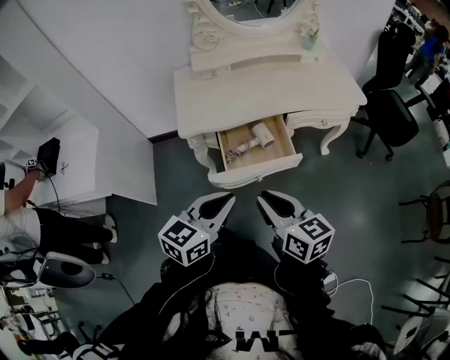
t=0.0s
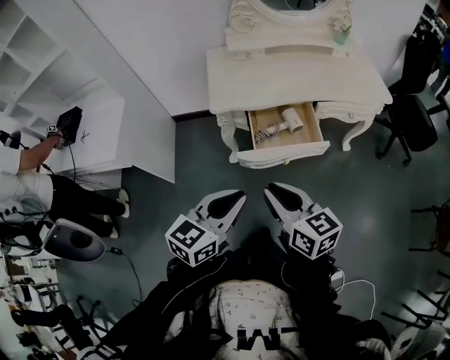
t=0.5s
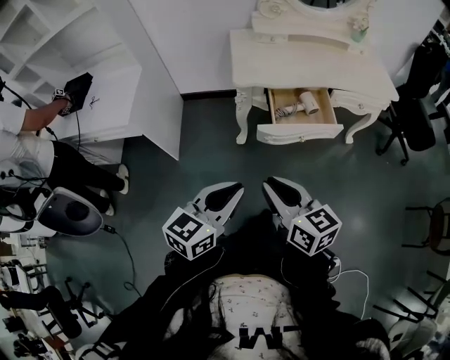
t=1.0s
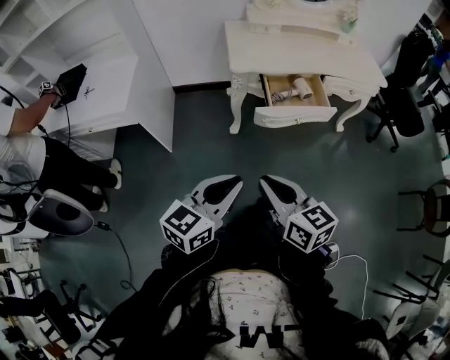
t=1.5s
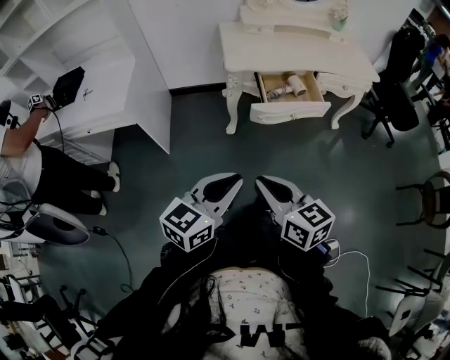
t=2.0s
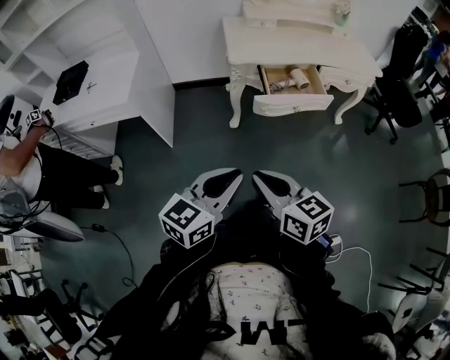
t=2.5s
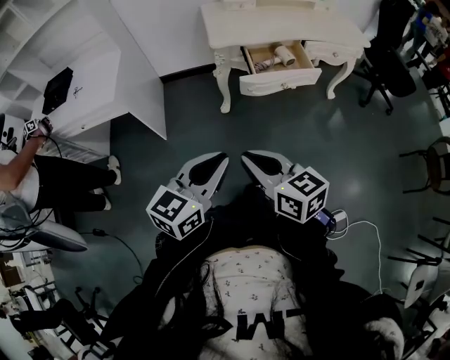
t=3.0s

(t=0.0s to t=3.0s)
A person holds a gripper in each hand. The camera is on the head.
t=0.0s - t=1.5s: The grippers both shift backward and to the left by approximately 25 cm.
t=1.5s - t=3.0s: The right gripper changes place by about 5 cm.

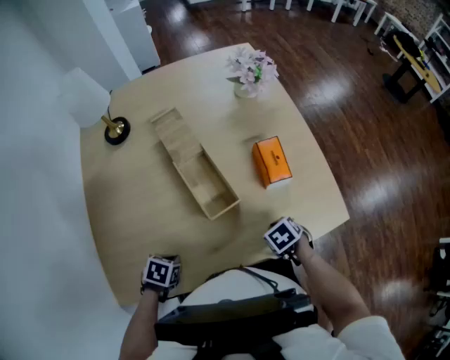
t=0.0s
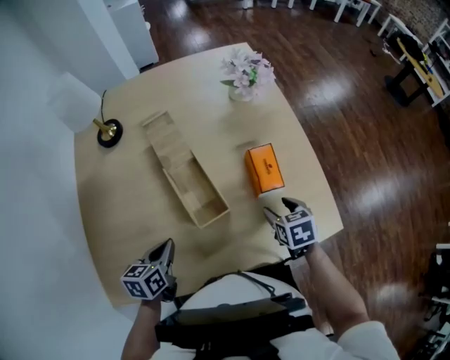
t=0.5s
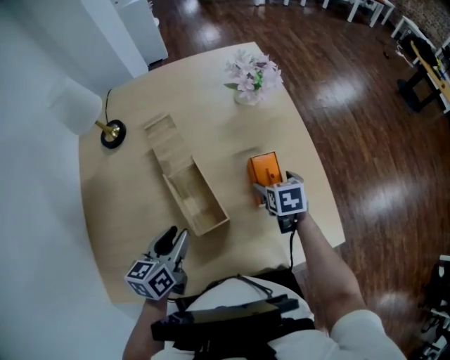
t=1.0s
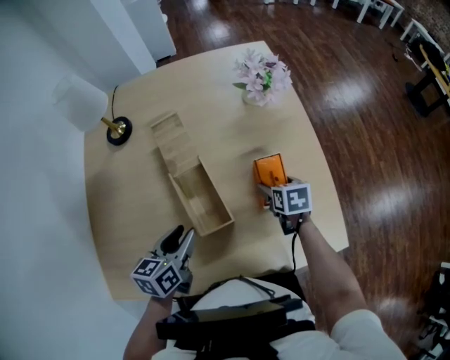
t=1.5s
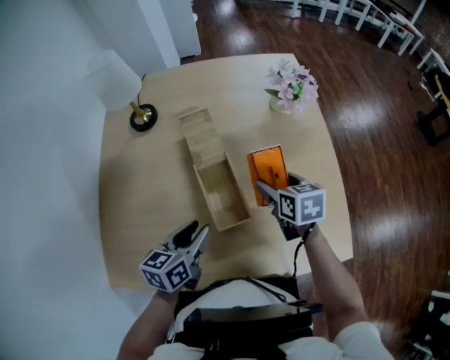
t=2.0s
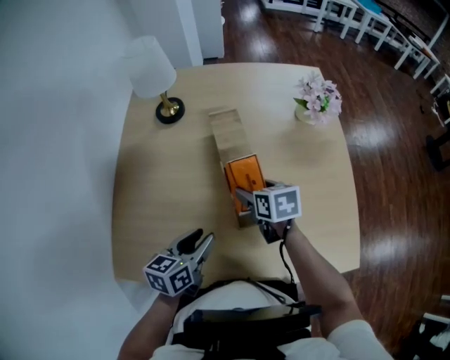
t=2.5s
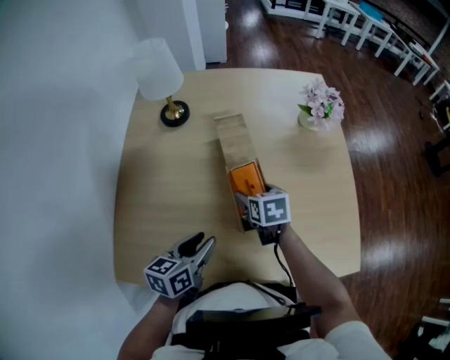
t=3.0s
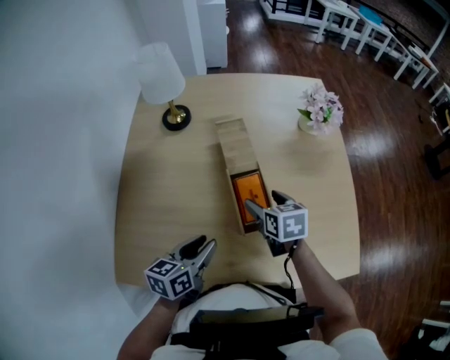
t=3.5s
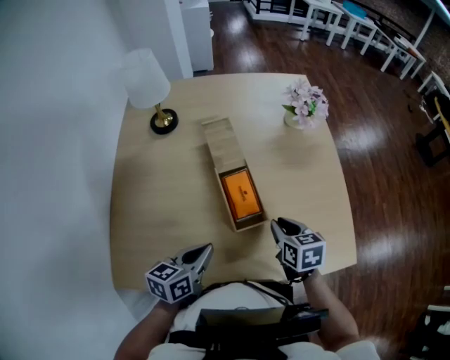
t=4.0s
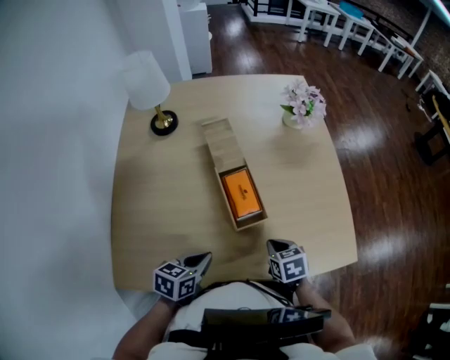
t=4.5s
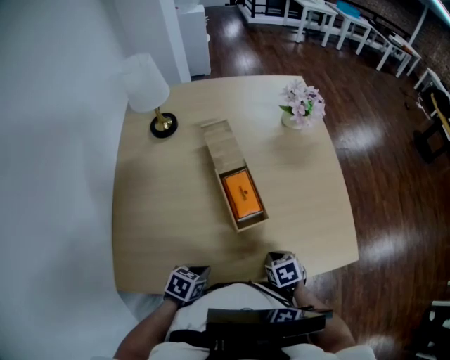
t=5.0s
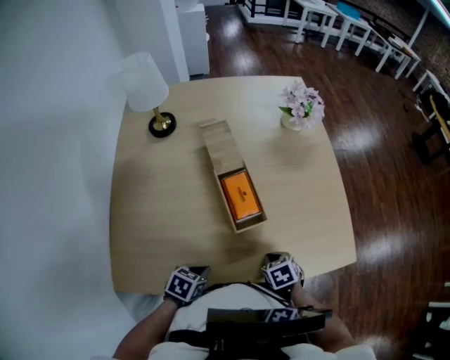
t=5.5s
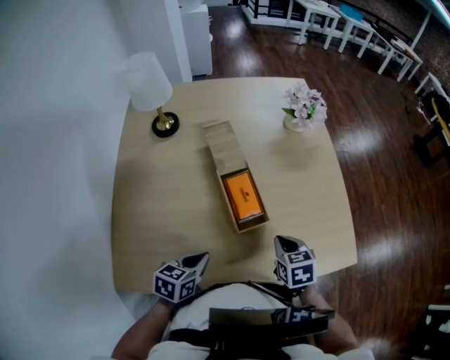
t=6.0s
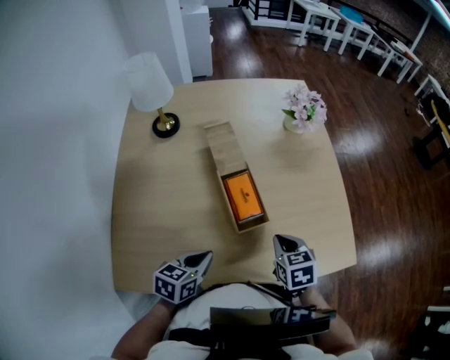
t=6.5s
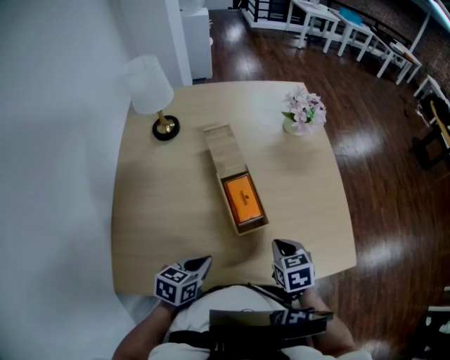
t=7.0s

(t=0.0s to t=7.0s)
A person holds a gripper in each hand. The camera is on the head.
t=0.0s - t=2.0s: The left gripper moves roughly 25 cm, angles its fingers upward, by roughly 50 degrees, and opens. Meanwhile the right gripper shifts by about 30 cm, points its fingers about 40 degrees further upward, and opens.
t=2.0s - t=3.5s: The left gripper moves to the left, approximately 5 cm; the right gripper moves to the left, some 10 cm.
t=3.5s - t=5.0s: The right gripper moves backward, downward and to the right, roughly 25 cm, changes its angle by some 20 degrees, and closes its fingers; the left gripper heads downward and backward, covering roughly 15 cm, angles its fingers downward, by about 30 degrees, and closes up.
t=5.0s - t=7.0s: Both grippers move upward and forward, roughly 10 cm. The left gripper rotates approximately 20 degrees.

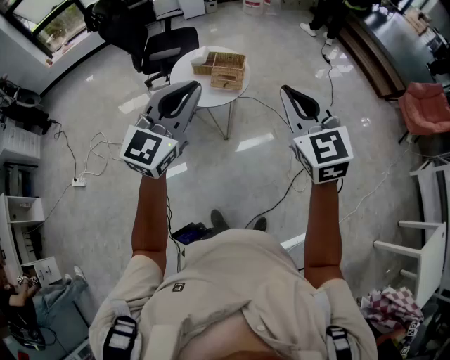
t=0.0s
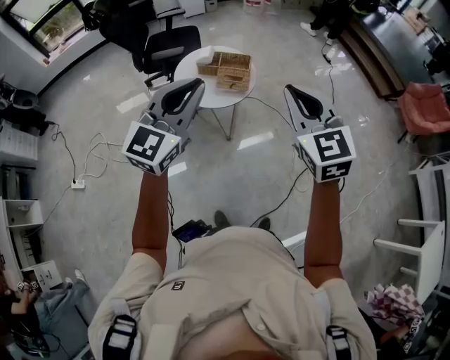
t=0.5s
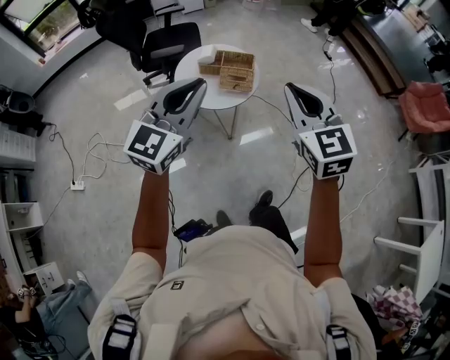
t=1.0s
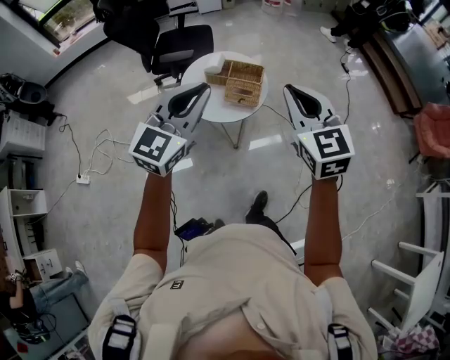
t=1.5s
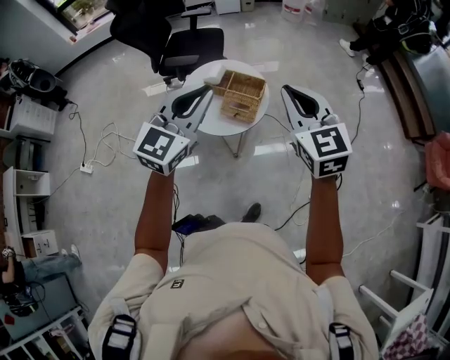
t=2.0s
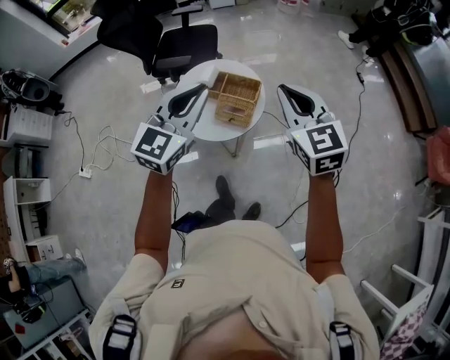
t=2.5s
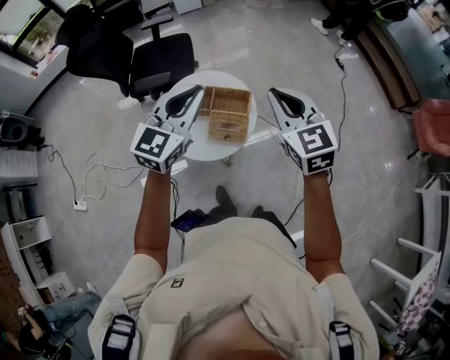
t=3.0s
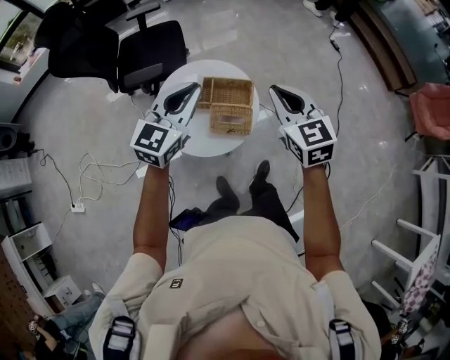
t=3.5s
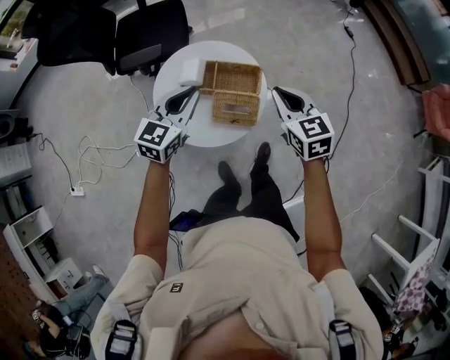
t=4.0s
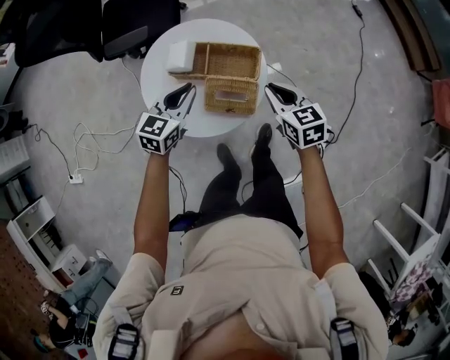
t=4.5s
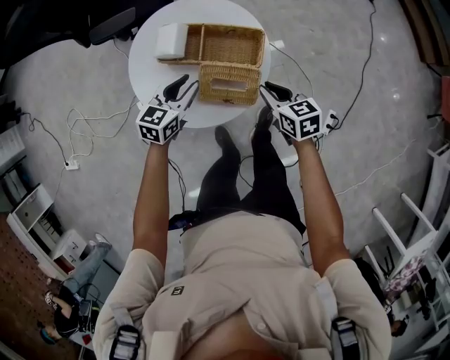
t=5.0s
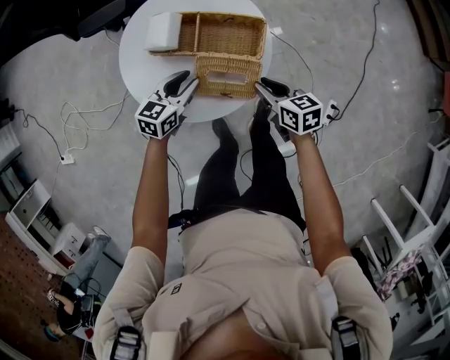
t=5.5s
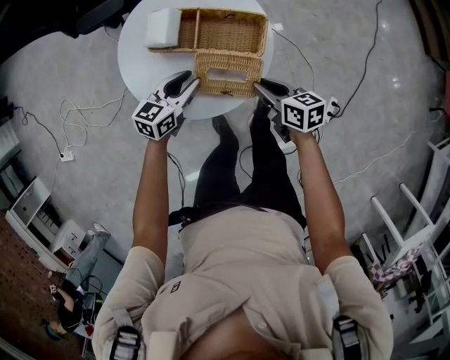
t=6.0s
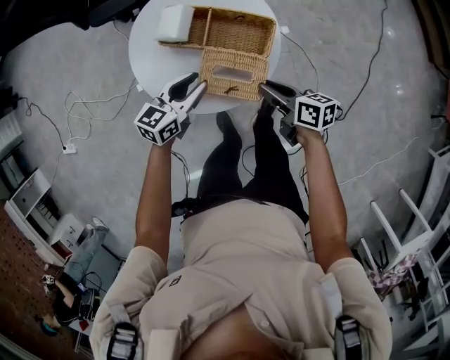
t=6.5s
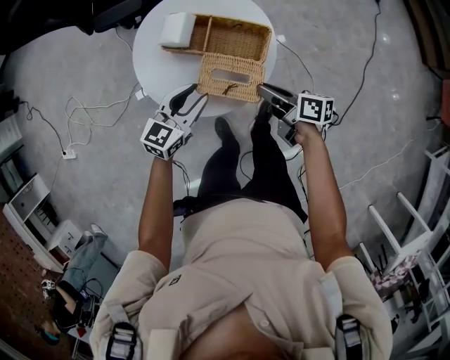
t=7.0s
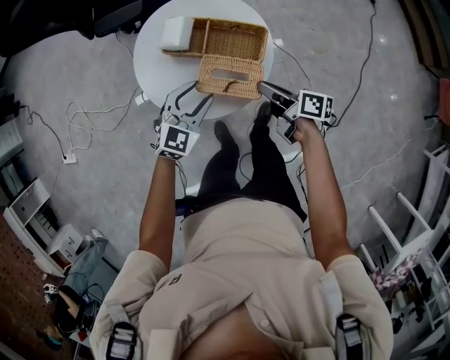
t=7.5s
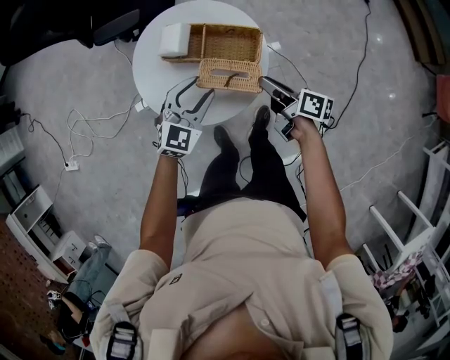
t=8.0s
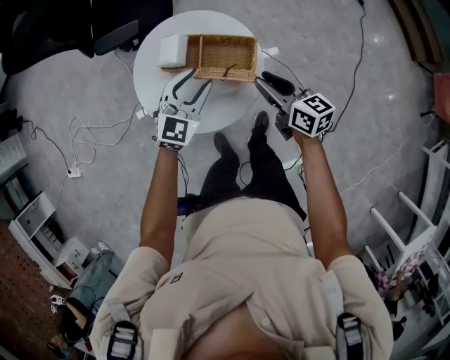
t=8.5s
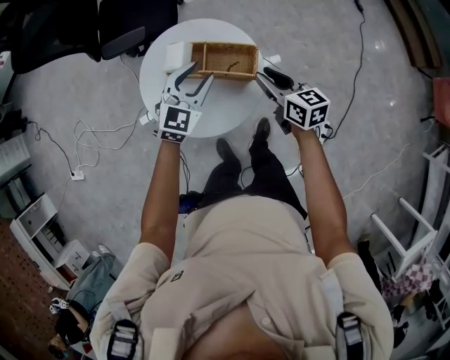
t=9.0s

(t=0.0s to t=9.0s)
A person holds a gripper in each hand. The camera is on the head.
t=0.0s - t=2.0s: The grippers both shift forward by roughly 25 cm.
t=2.0s - t=4.5s: The two grippers go about 50 cm downward and forward. The left gripper changes its angle by approximately 30 degrees, while the right gripper swivels some 40 degrees.
t=4.5s - t=7.0s: The right gripper moves downward, about 10 cm, and rolls clockwise, seen from behind, by about 50 degrees, while the left gripper travels backward and downward by approximately 10 cm, and opens up.
t=7.0s - t=9.0s: The right gripper is displaced upward and forward by some 15 cm, and changes its angle by about 40 degrees. The left gripper is displaced forward and upward by some 15 cm, and changes its angle by roughly 30 degrees.

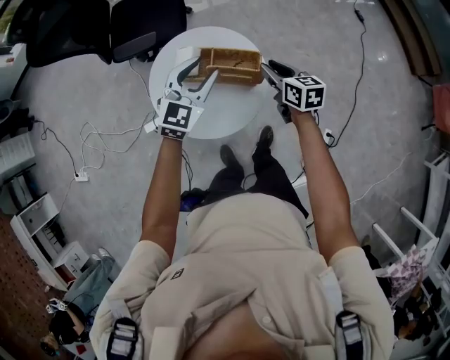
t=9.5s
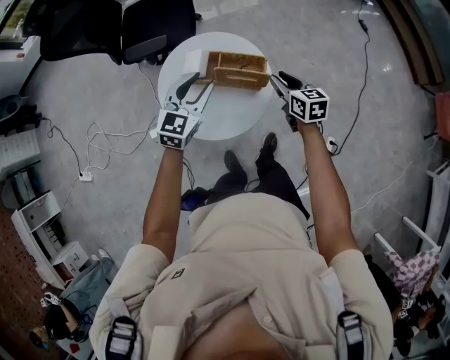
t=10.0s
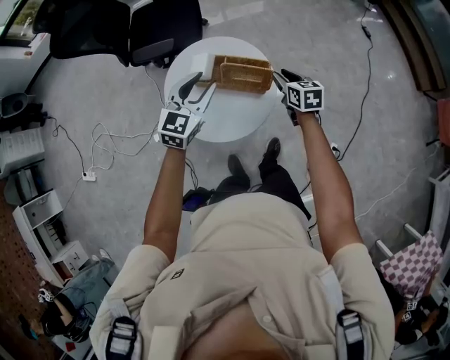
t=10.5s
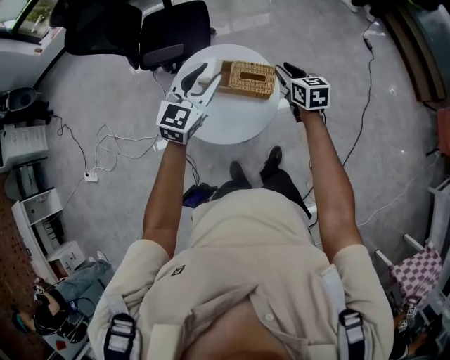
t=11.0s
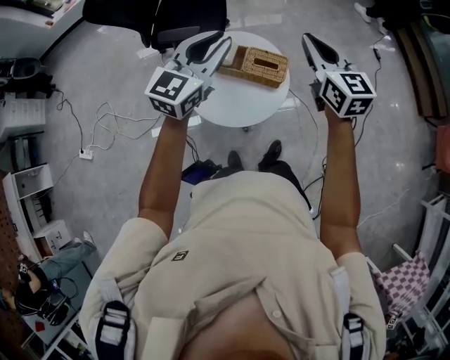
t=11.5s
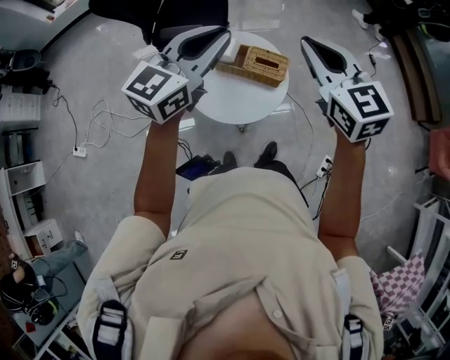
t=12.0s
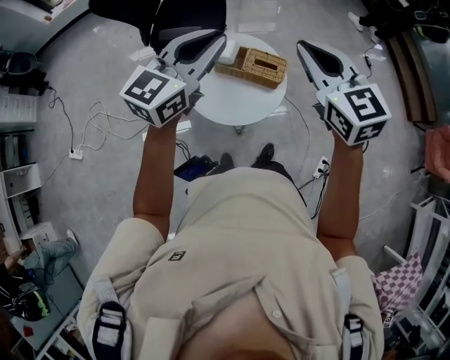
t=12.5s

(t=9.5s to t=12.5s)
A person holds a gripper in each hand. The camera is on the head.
t=9.5s - t=11.0s: Both grippers travel together upward, some 10 cm.
t=11.0s - t=12.5s: The left gripper travels upward and backward by some 20 cm, and closes up; the right gripper travels upward and backward by approximately 30 cm, turns by roughly 30 degrees, and closes its fingers.

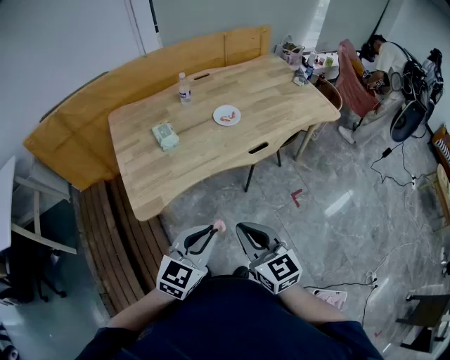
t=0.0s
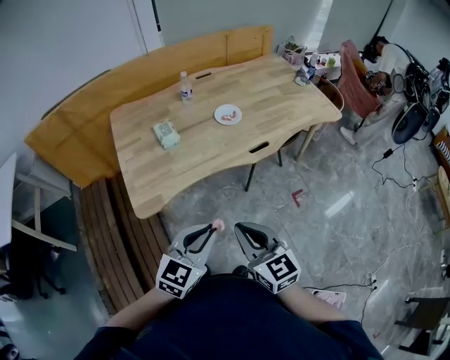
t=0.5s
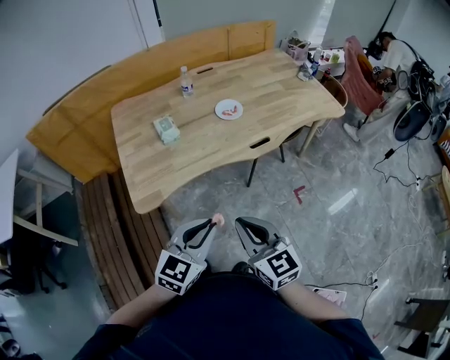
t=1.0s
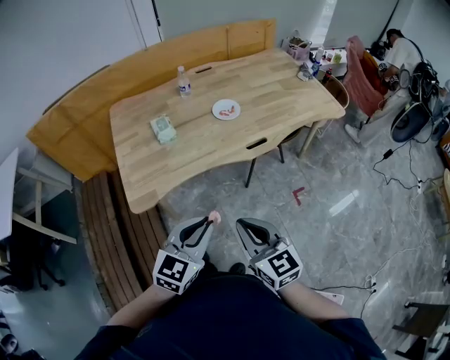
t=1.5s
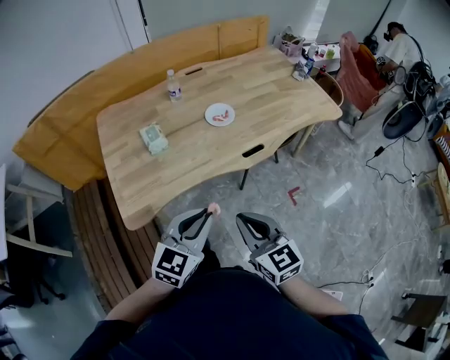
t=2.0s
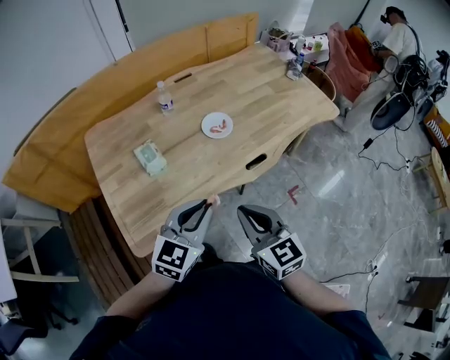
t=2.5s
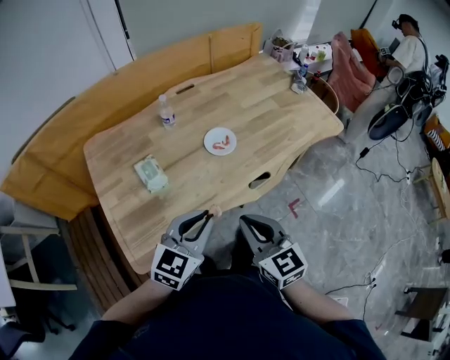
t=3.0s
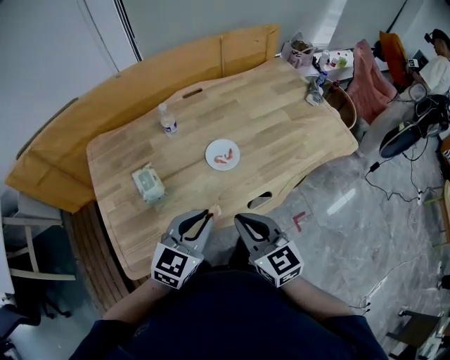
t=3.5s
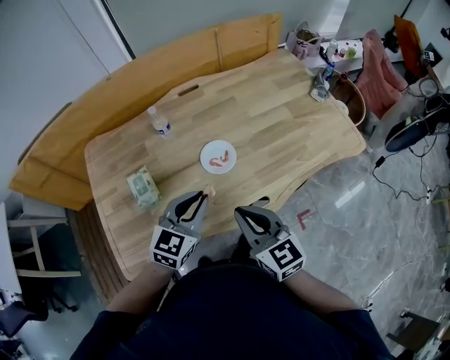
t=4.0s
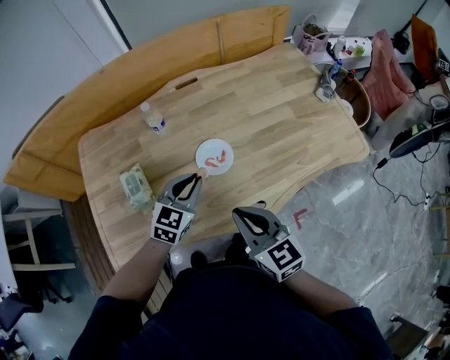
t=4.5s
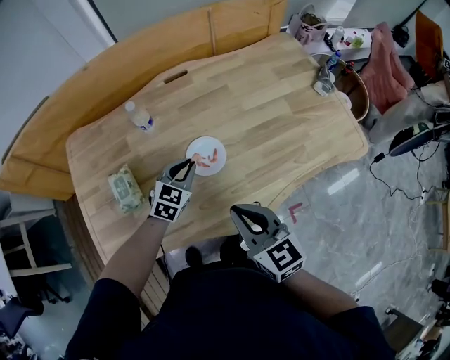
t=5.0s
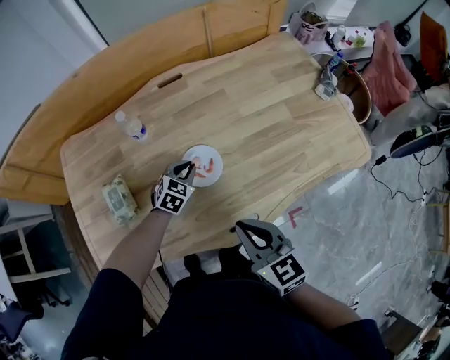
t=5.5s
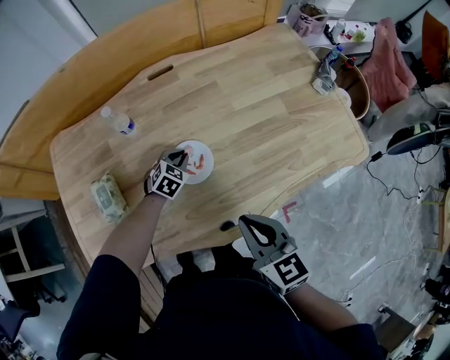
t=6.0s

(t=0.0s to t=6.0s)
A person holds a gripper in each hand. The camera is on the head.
t=0.0s - t=2.0s: The grippers both shift forward by approximately 10 cm.
t=2.0s - t=4.0s: Both grippers move forward, approximately 30 cm.
t=4.0s - t=6.0s: The left gripper heads downward and forward, covering some 35 cm, and points its fingers approximately 30 degrees further downward; the right gripper moves to the right, forward and downward, about 15 cm.
